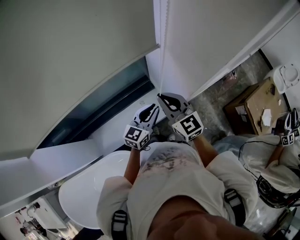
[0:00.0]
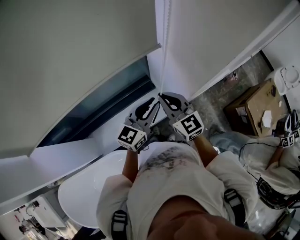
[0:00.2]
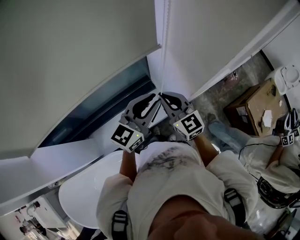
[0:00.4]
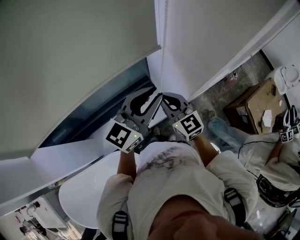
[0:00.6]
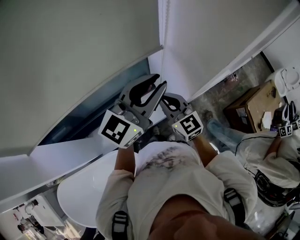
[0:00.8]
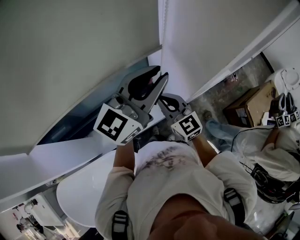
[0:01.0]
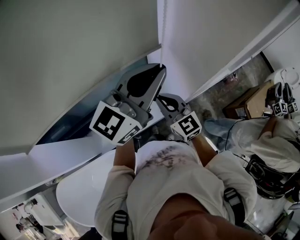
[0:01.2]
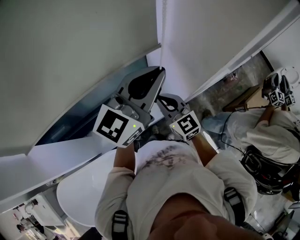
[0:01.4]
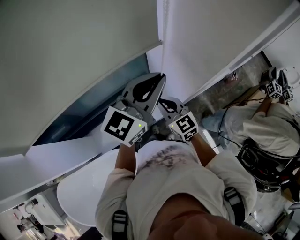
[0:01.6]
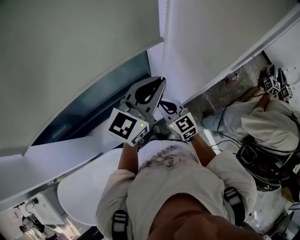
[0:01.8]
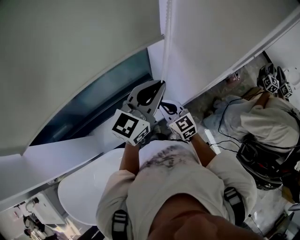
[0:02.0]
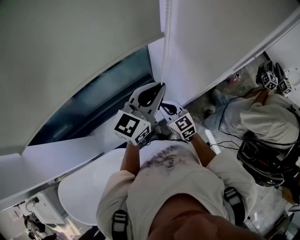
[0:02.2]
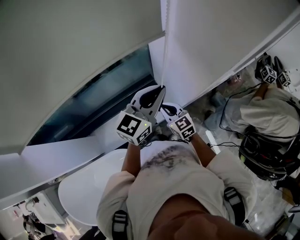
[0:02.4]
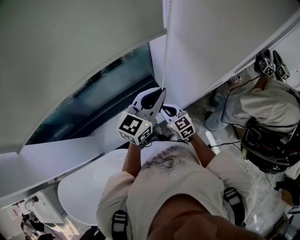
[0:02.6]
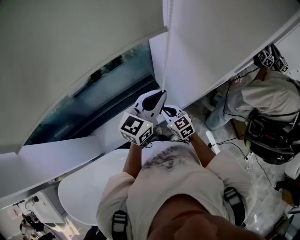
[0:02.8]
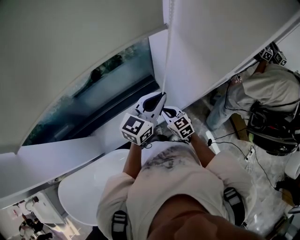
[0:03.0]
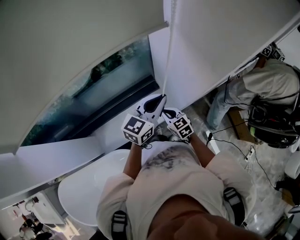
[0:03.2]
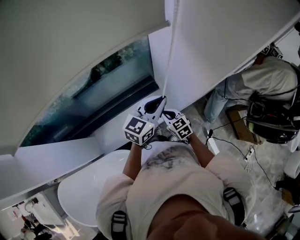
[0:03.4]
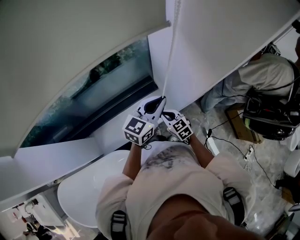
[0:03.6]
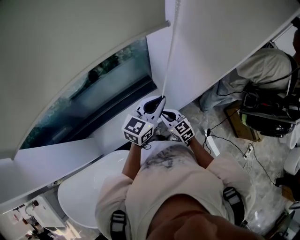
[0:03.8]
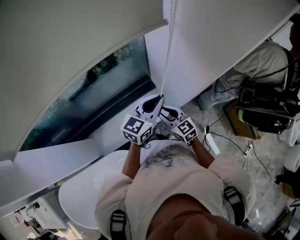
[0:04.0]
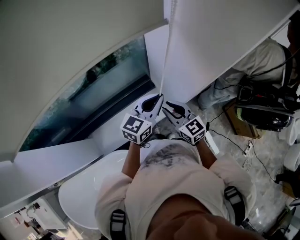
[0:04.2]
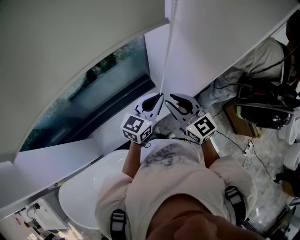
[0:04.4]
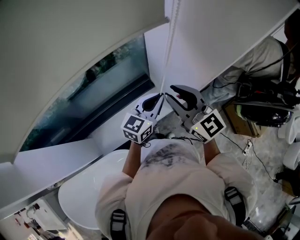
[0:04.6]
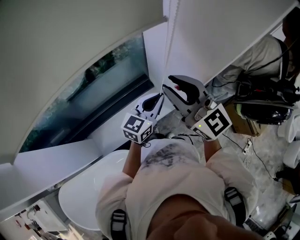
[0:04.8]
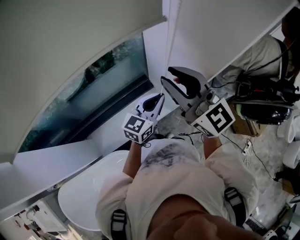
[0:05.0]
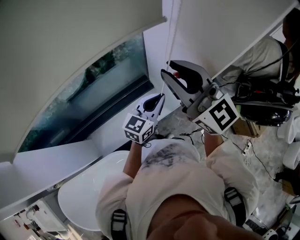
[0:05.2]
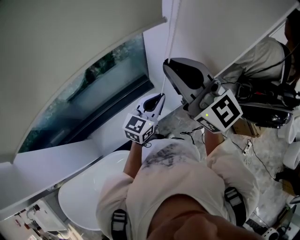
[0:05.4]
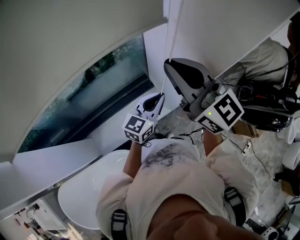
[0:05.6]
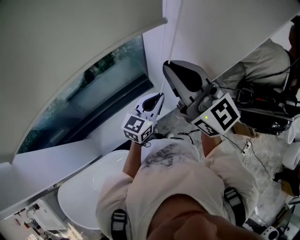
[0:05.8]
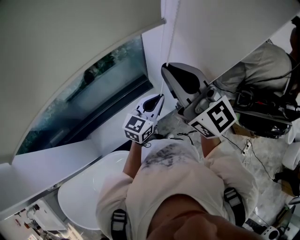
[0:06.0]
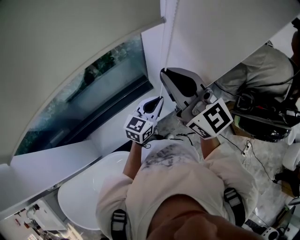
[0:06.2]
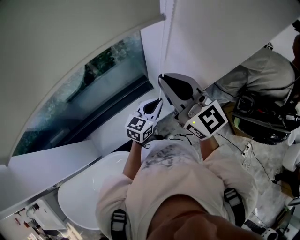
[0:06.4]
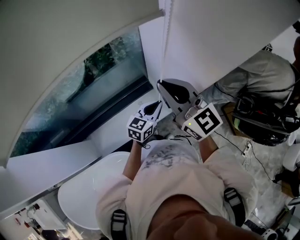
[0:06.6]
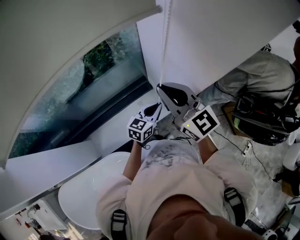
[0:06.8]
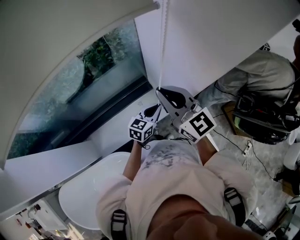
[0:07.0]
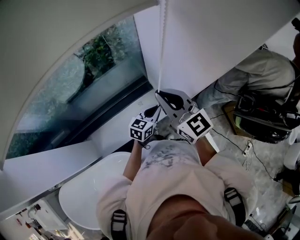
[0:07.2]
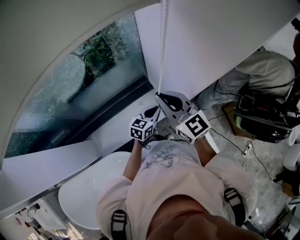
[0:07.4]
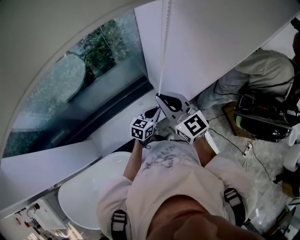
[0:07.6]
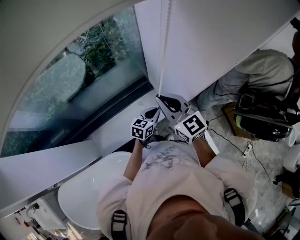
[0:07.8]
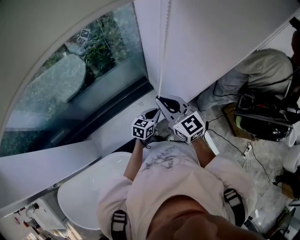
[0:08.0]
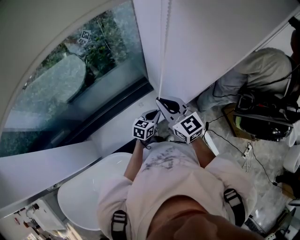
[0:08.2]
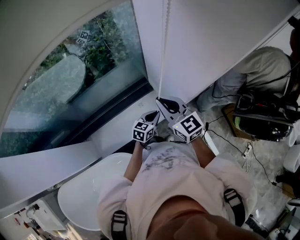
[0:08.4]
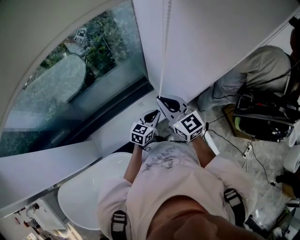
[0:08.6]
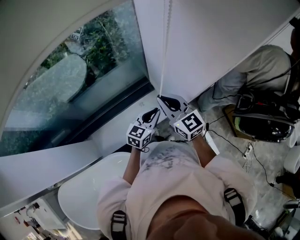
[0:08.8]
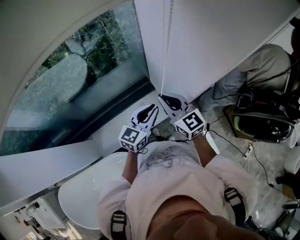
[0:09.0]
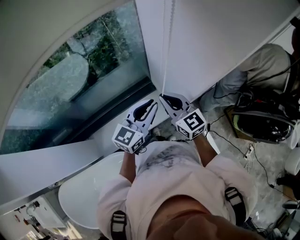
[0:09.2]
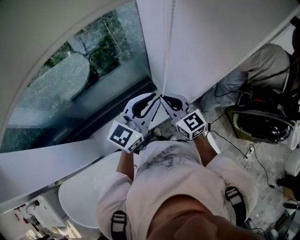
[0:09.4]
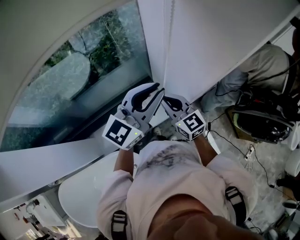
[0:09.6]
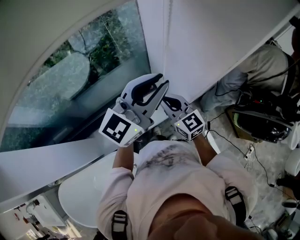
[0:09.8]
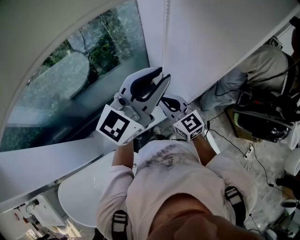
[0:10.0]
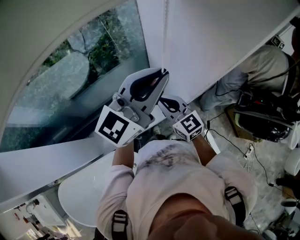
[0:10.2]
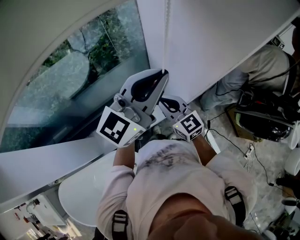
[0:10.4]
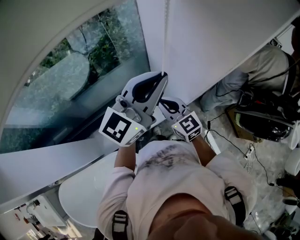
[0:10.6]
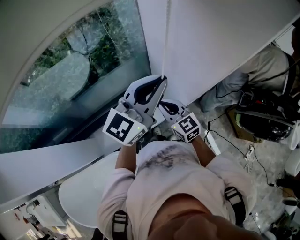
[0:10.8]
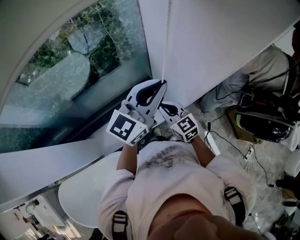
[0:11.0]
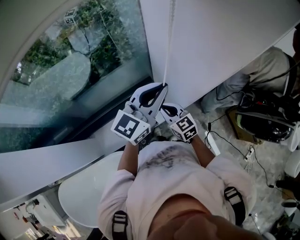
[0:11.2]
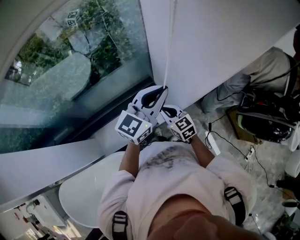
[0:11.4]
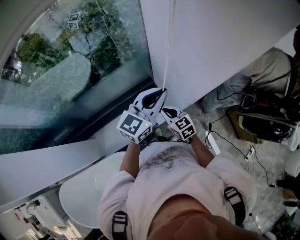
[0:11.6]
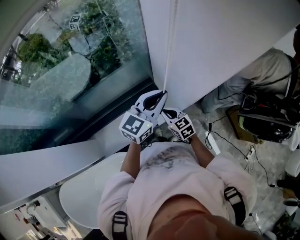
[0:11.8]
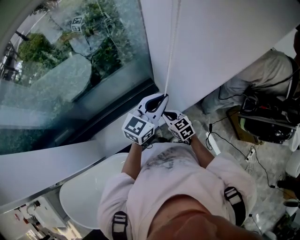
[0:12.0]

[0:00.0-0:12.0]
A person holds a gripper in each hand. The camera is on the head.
0:00.0 to 0:01.6: The left gripper shifts approximately 25 cm upward.
0:01.6 to 0:03.0: The grippers both shift downward by roughly 15 cm.
0:03.0 to 0:04.4: The right gripper moves upward, roughly 20 cm, rotates approximately 20 degrees, and opens its fingers.
0:04.4 to 0:06.0: The right gripper shifts some 20 cm upward, and closes up.
0:06.0 to 0:07.6: Both grippers travel together downward, some 15 cm.
0:07.6 to 0:09.0: The left gripper is displaced upward by about 15 cm.
0:09.0 to 0:10.4: The left gripper travels upward by roughly 25 cm, and changes its angle by about 30 degrees.
0:10.4 to 0:12.0: Both grippers travel together downward, about 20 cm. The left gripper turns by approximately 20 degrees; the right gripper swivels approximately 30 degrees.

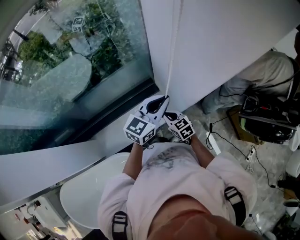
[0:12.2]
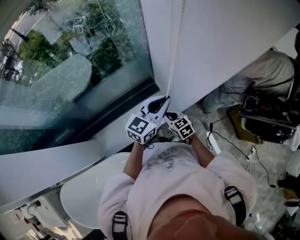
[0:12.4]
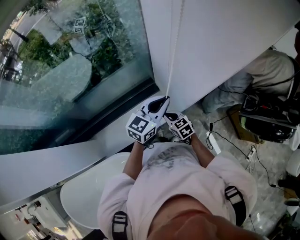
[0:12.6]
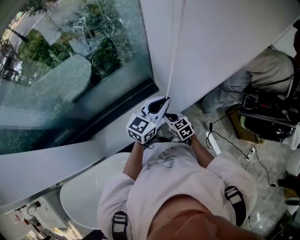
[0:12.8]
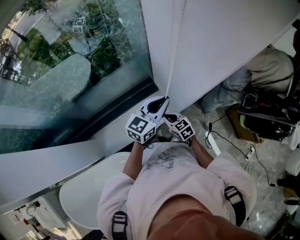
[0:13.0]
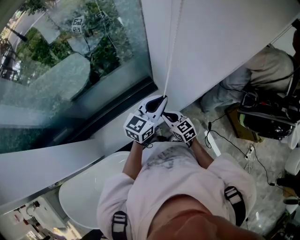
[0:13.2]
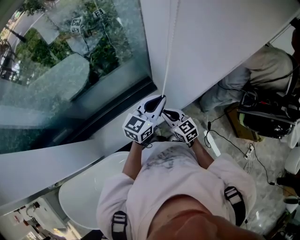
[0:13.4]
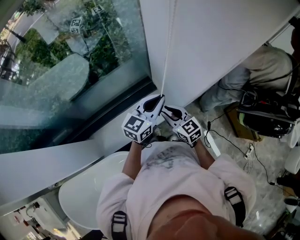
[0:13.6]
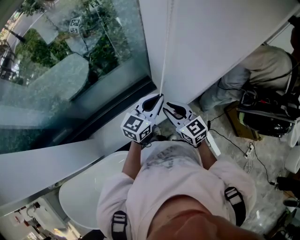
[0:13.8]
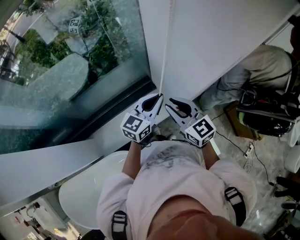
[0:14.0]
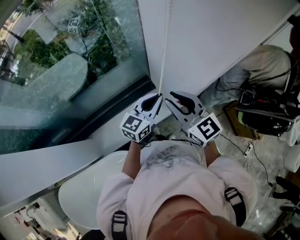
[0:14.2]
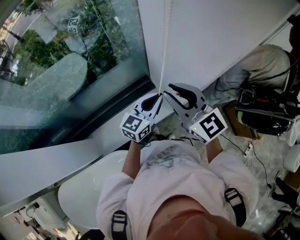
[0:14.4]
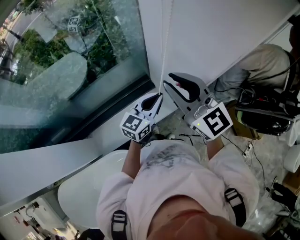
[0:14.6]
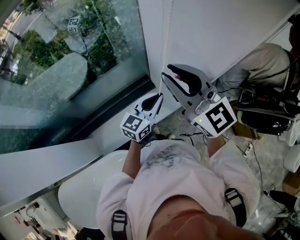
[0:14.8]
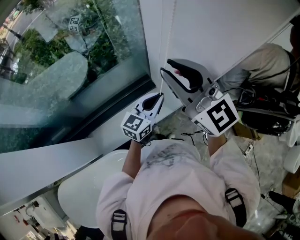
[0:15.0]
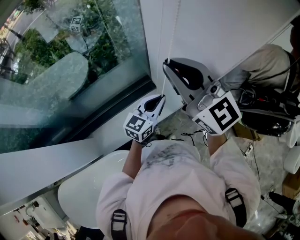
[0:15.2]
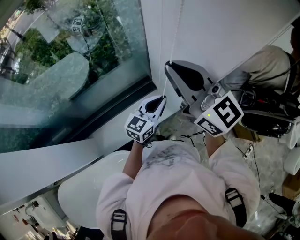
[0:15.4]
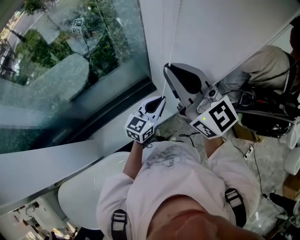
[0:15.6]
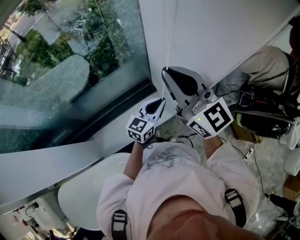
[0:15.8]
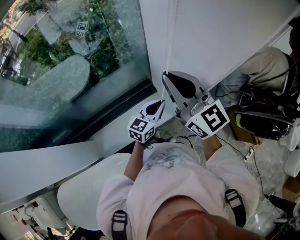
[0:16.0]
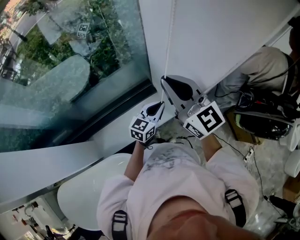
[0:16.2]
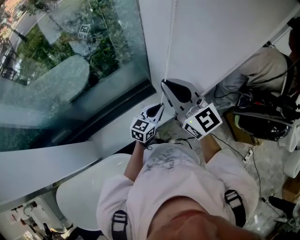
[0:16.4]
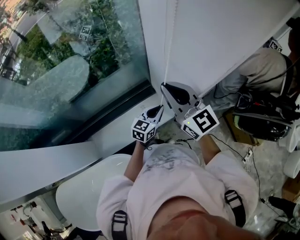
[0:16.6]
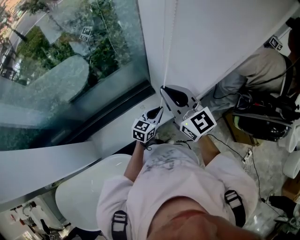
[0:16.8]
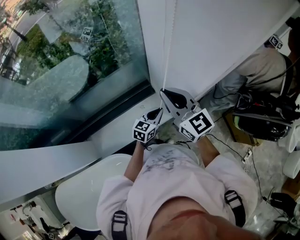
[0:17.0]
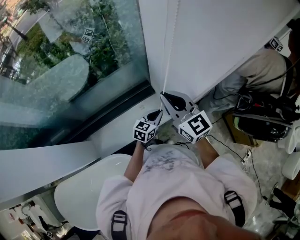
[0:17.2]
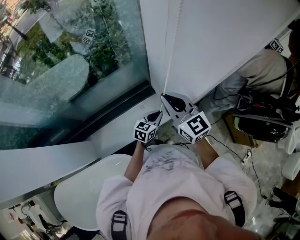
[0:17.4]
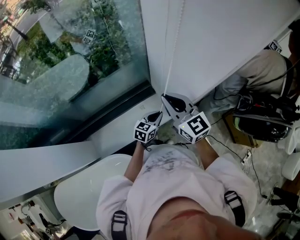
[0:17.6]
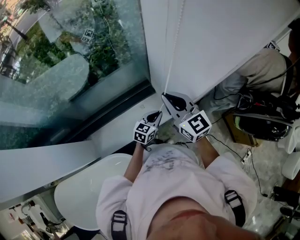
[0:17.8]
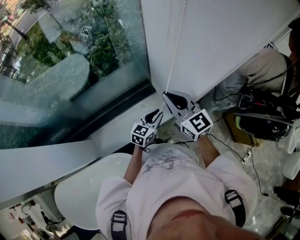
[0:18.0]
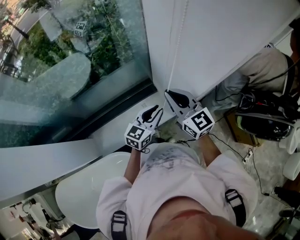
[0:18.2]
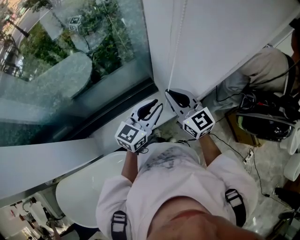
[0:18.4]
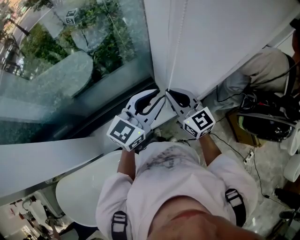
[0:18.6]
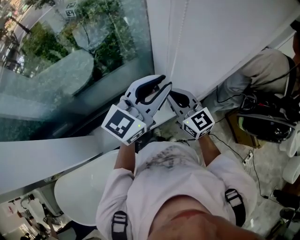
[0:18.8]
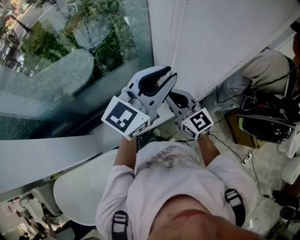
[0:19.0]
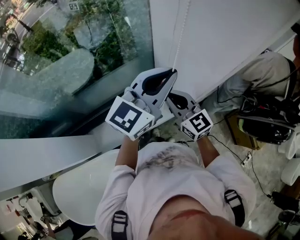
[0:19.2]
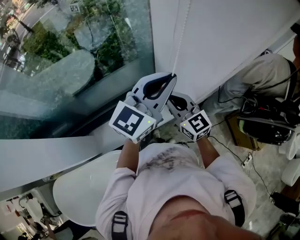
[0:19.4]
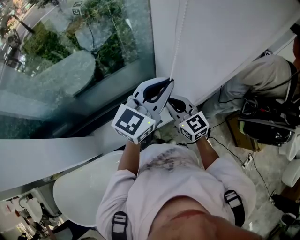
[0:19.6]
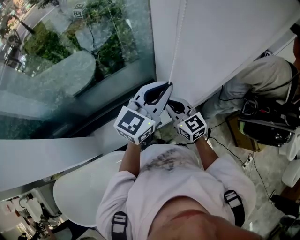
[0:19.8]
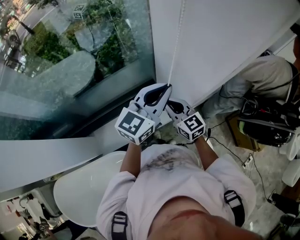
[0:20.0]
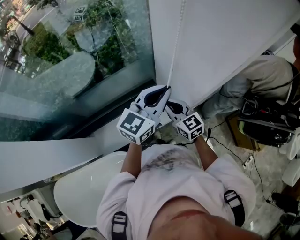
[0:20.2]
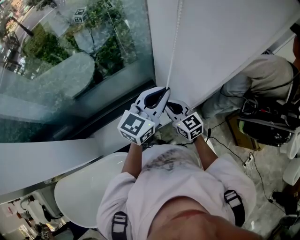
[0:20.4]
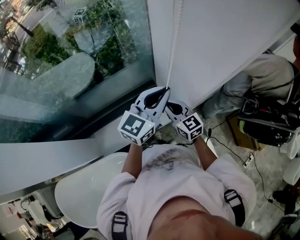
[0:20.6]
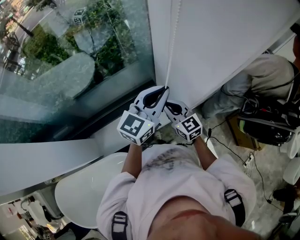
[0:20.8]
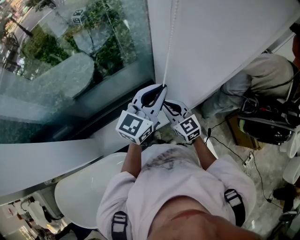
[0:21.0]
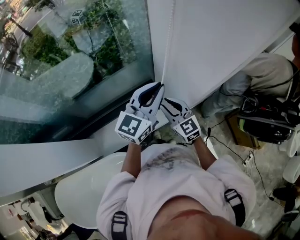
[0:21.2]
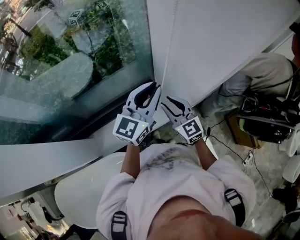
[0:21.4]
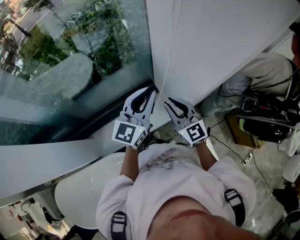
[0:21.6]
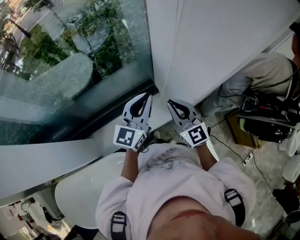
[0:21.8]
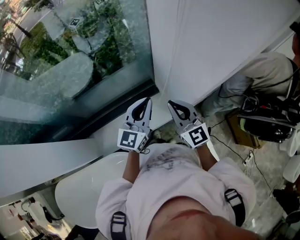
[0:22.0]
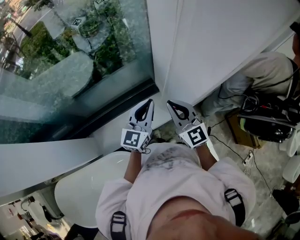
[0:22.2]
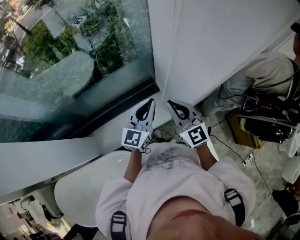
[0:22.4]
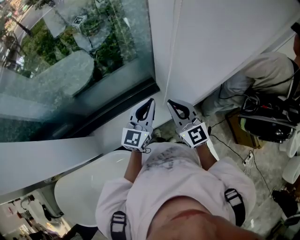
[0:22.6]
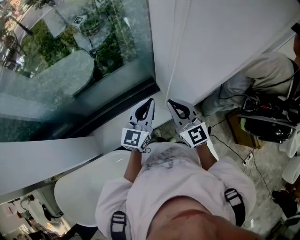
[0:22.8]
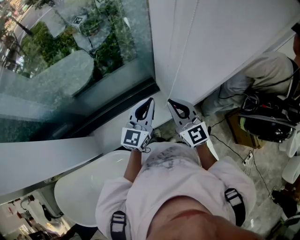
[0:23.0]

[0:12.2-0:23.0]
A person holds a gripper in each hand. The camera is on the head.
0:12.2 to 0:13.8: The right gripper is displaced upward by some 15 cm.
0:13.8 to 0:15.2: The right gripper goes about 30 cm upward, and changes its angle by some 30 degrees.
0:15.2 to 0:16.8: The two grippers go approximately 15 cm downward.
0:16.8 to 0:18.4: The left gripper moves upward, approximately 15 cm. Meanwhile the right gripper moves downward, roughly 5 cm.
0:18.4 to 0:20.0: The right gripper moves downward, some 5 cm. The left gripper heads upward, covering about 10 cm.
0:20.0 to 0:21.4: The right gripper opens its fingers.
0:21.4 to 0:23.0: The left gripper moves downward, approximately 10 cm; the right gripper shifts by roughly 5 cm, and closes.

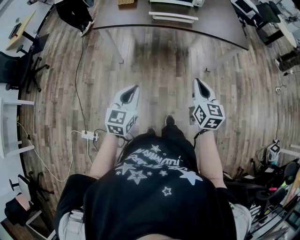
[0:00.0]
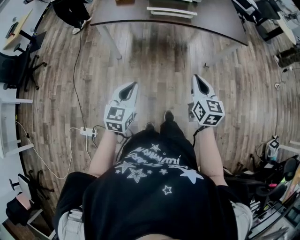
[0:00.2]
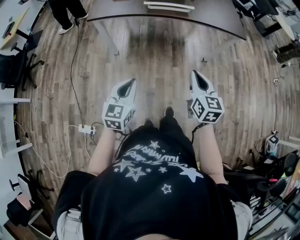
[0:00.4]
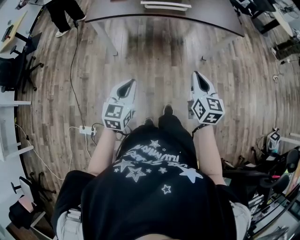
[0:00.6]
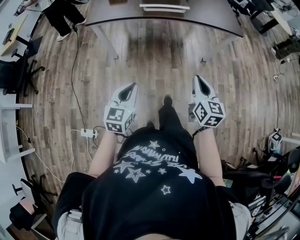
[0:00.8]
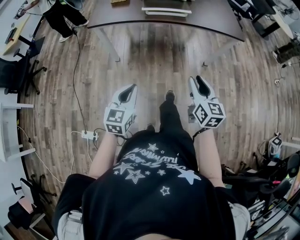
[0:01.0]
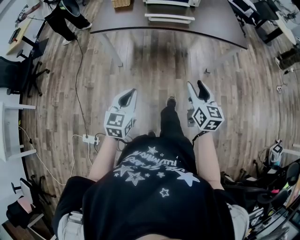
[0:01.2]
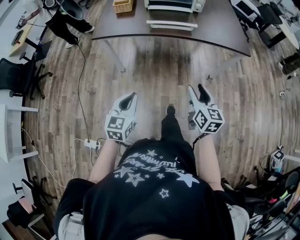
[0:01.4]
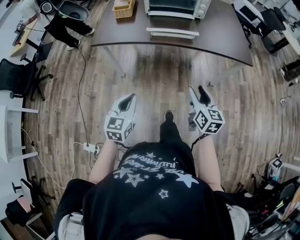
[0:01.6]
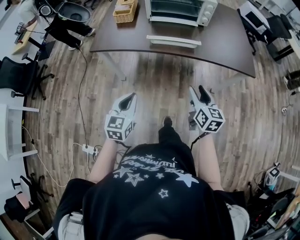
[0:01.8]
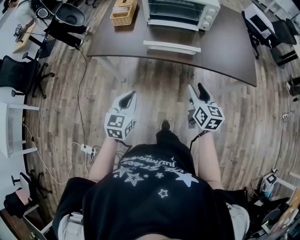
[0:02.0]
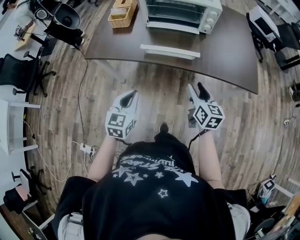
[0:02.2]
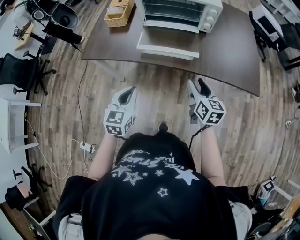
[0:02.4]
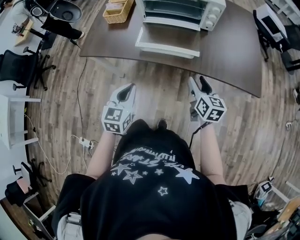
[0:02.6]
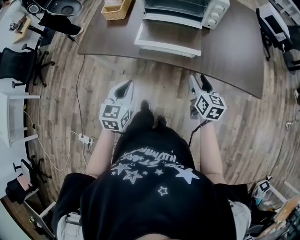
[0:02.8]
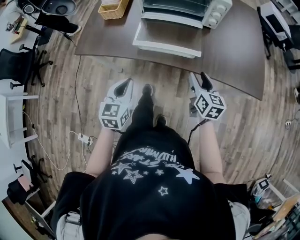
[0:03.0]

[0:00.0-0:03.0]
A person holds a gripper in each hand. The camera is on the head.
0:00.0 to 0:01.6: Both grippers travel together forward, some 15 cm. The right gripper opens.
0:01.6 to 0:03.0: The two grippers go some 25 cm forward.
